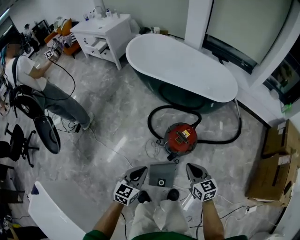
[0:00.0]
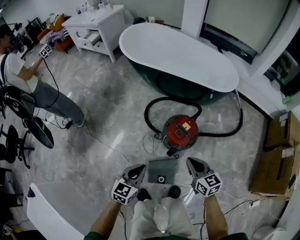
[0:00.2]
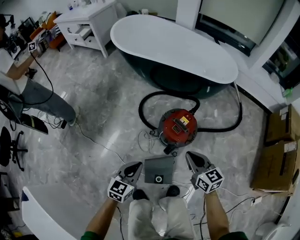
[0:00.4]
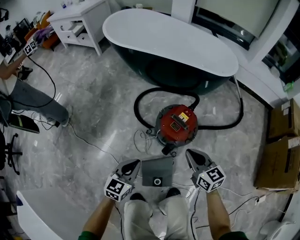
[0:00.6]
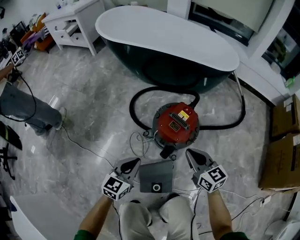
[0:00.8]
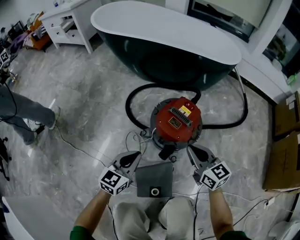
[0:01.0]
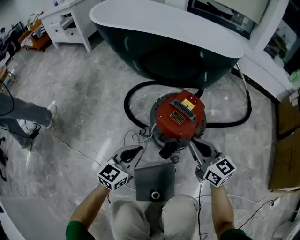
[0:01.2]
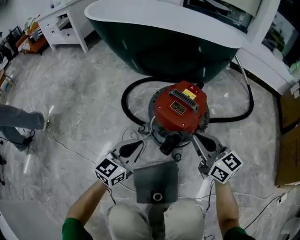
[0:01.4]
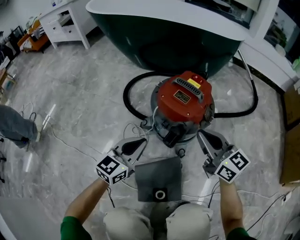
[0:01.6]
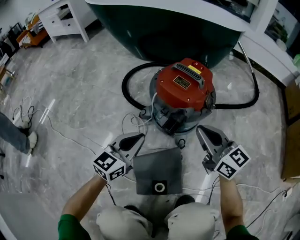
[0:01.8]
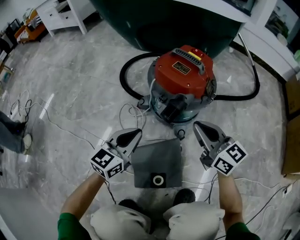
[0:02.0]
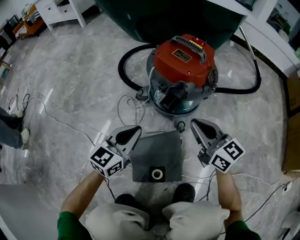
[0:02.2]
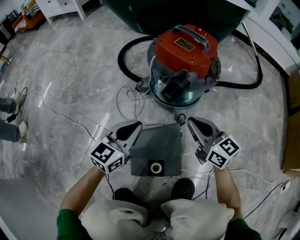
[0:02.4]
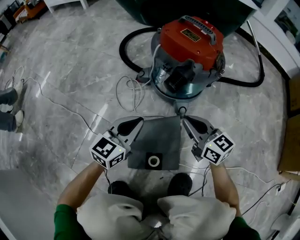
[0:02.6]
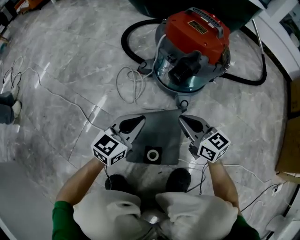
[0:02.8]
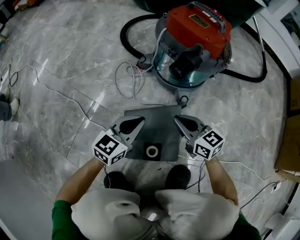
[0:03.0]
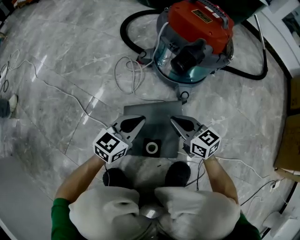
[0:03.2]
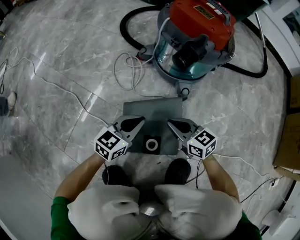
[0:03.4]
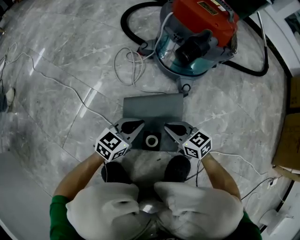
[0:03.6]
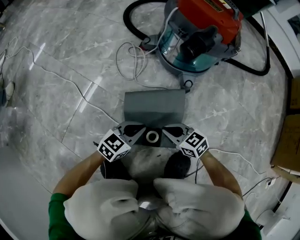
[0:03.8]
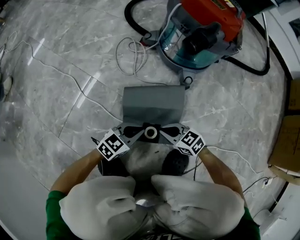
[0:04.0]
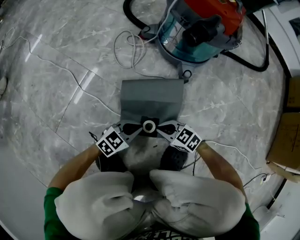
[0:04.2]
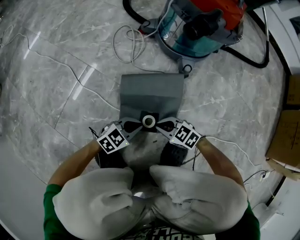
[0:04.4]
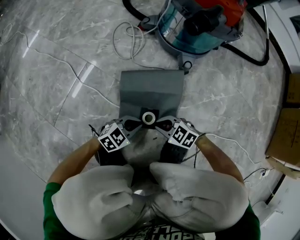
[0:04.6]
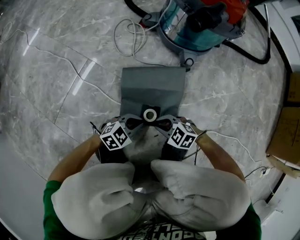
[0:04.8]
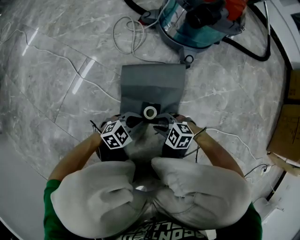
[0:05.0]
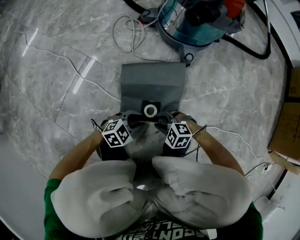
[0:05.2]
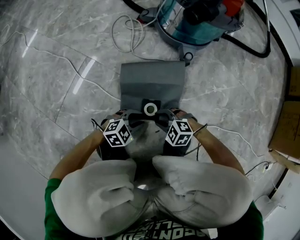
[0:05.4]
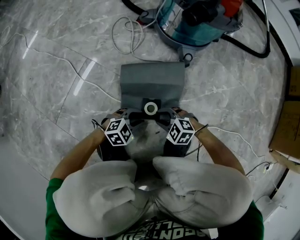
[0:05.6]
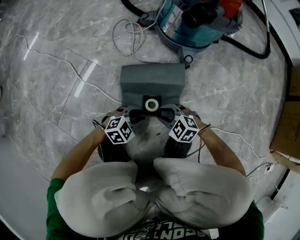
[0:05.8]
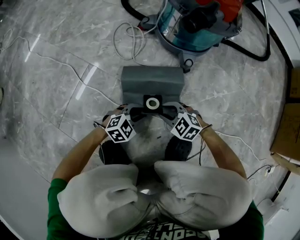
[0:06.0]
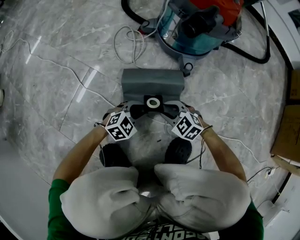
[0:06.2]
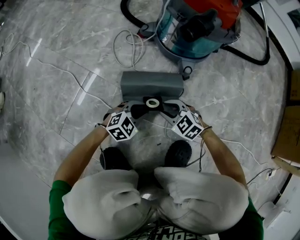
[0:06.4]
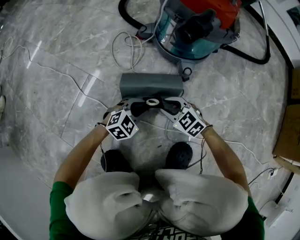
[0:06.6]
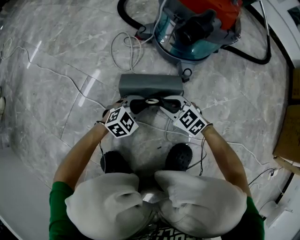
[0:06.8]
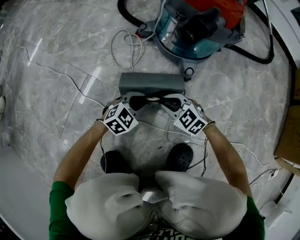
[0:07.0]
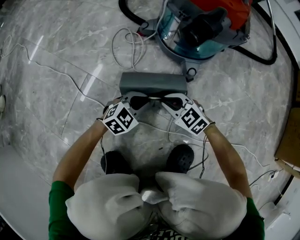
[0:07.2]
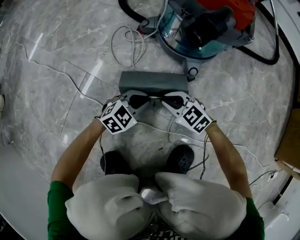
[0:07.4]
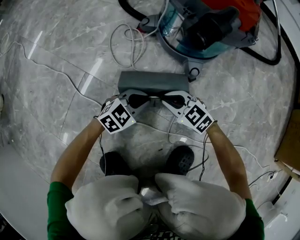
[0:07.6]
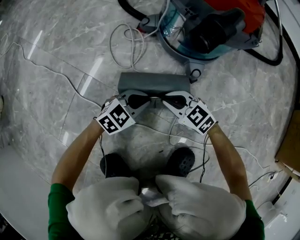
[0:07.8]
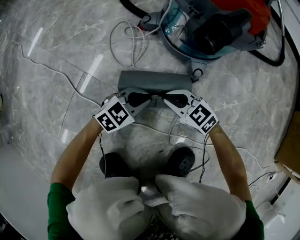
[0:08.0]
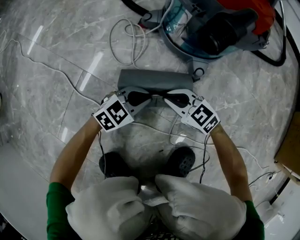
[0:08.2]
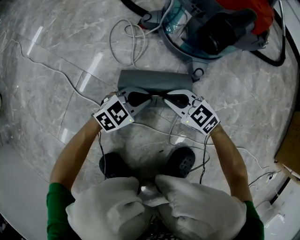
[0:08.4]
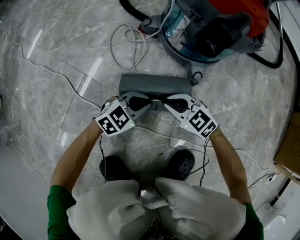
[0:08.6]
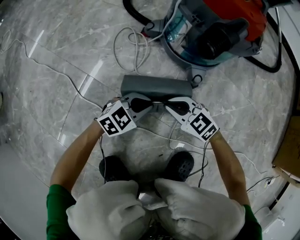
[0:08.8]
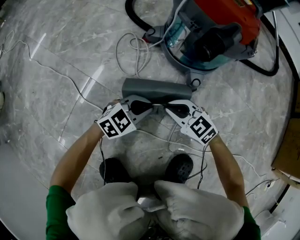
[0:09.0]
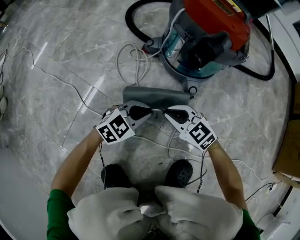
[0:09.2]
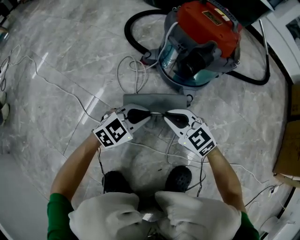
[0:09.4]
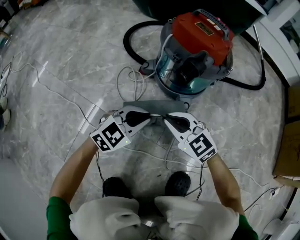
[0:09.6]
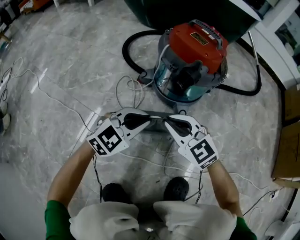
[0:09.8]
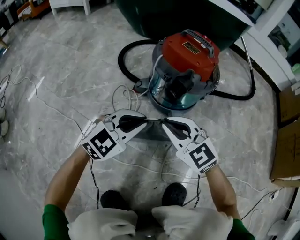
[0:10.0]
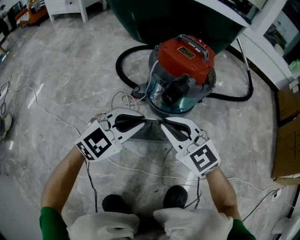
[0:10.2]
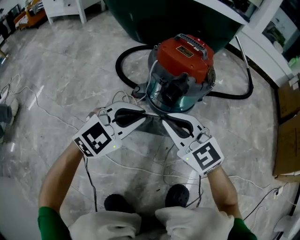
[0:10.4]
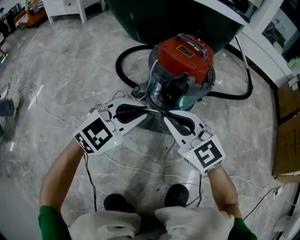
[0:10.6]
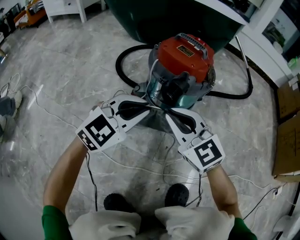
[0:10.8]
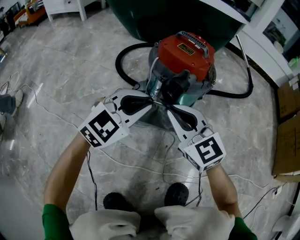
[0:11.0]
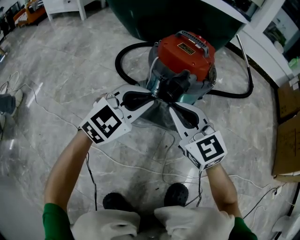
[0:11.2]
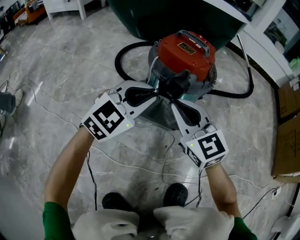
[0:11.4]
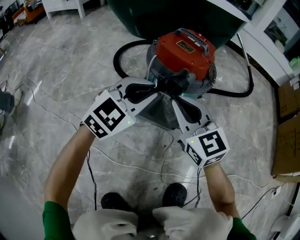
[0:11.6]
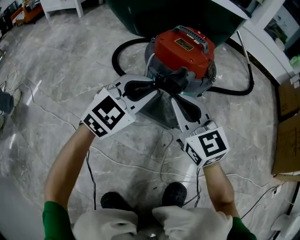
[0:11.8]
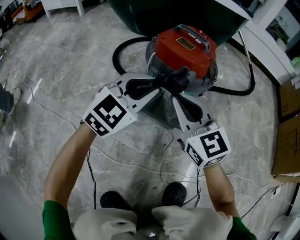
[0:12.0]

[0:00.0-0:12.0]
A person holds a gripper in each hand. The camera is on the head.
0:00.0 to 0:01.6: The two grippers go some 40 cm downward. The right gripper rotates approximately 20 degrees, while the left gripper rotates approximately 20 degrees.
0:01.6 to 0:03.0: The two grippers go approximately 25 cm downward and backward. The right gripper turns by roughly 20 degrees.
0:03.0 to 0:04.4: The right gripper shifts by approximately 25 cm, and changes its angle by some 40 degrees. Meanwhile the left gripper shifts some 15 cm downward, and turns by about 30 degrees.
0:04.4 to 0:06.0: The left gripper opens its fingers; the right gripper swivels approximately 20 degrees, and opens up.
0:06.0 to 0:07.6: The right gripper changes place by roughly 10 cm, and closes; the left gripper moves roughly 15 cm.
0:07.6 to 0:09.0: The grippers stay close to where they were, moving slightly.
0:09.0 to 0:10.4: The two grippers go roughly 25 cm upward. The right gripper rotates about 30 degrees. Meanwhile the left gripper turns by some 30 degrees.
0:10.4 to 0:12.0: The two grippers go approximately 5 cm forward.

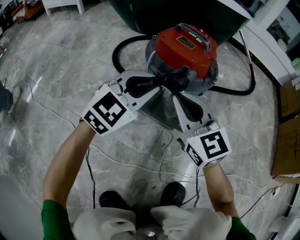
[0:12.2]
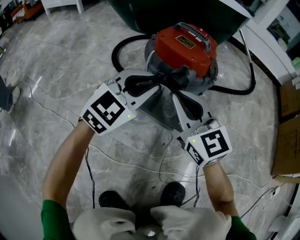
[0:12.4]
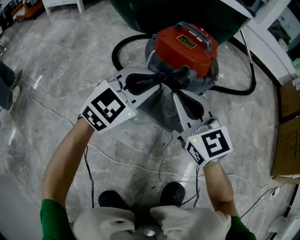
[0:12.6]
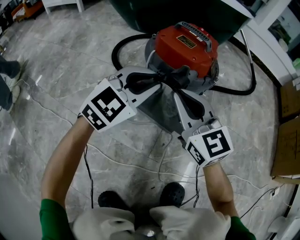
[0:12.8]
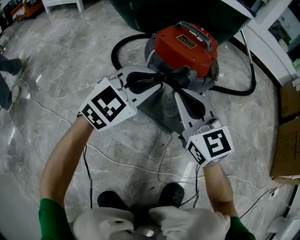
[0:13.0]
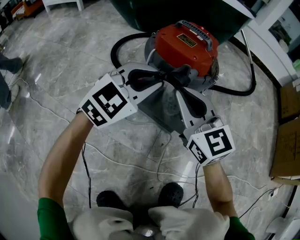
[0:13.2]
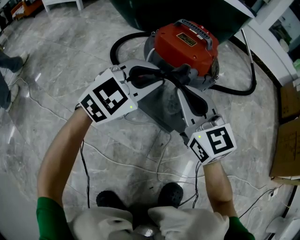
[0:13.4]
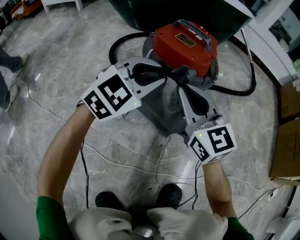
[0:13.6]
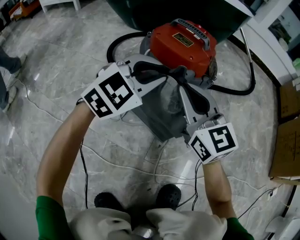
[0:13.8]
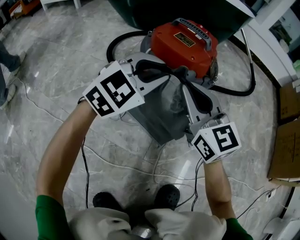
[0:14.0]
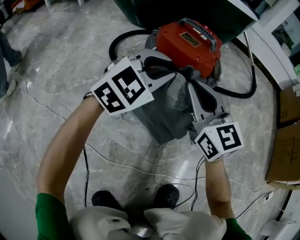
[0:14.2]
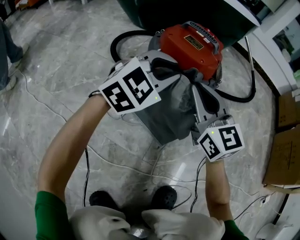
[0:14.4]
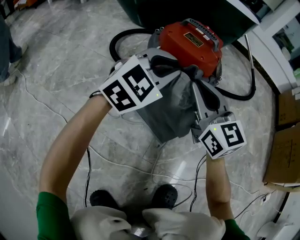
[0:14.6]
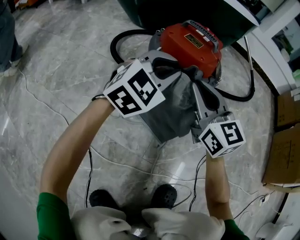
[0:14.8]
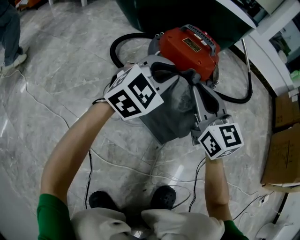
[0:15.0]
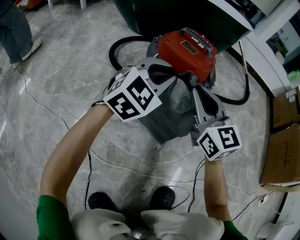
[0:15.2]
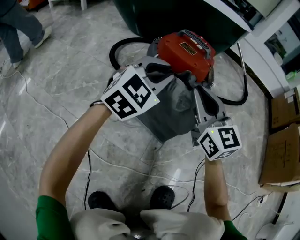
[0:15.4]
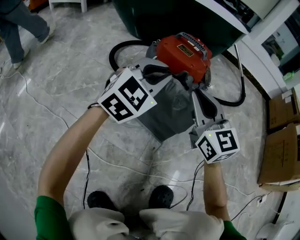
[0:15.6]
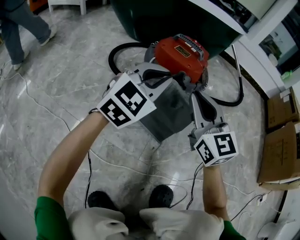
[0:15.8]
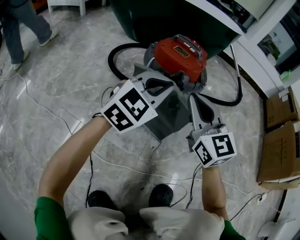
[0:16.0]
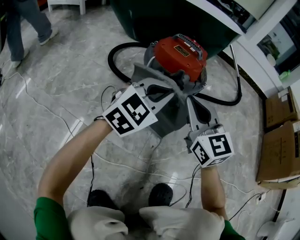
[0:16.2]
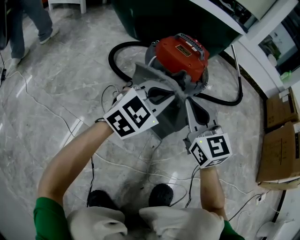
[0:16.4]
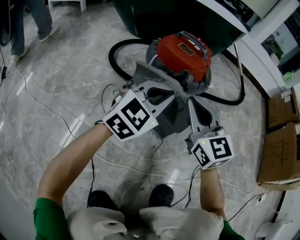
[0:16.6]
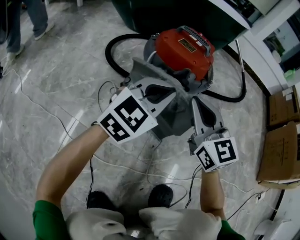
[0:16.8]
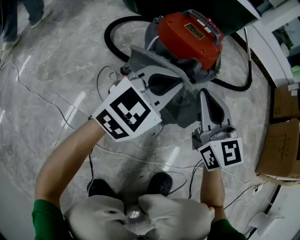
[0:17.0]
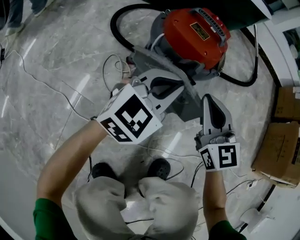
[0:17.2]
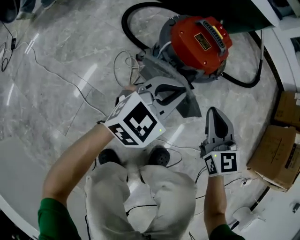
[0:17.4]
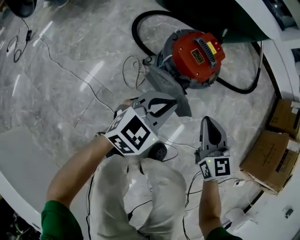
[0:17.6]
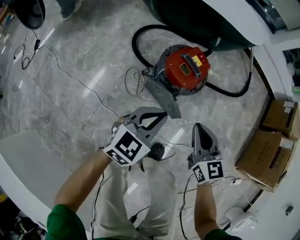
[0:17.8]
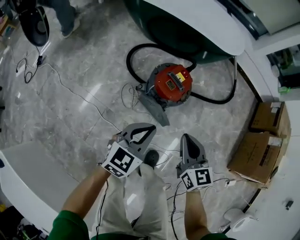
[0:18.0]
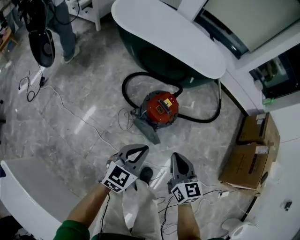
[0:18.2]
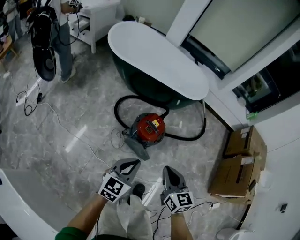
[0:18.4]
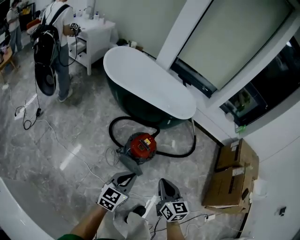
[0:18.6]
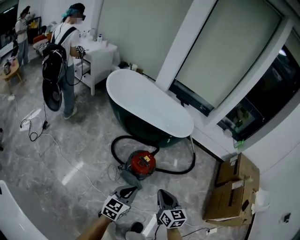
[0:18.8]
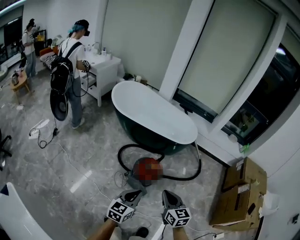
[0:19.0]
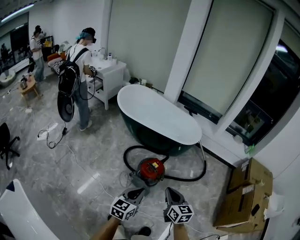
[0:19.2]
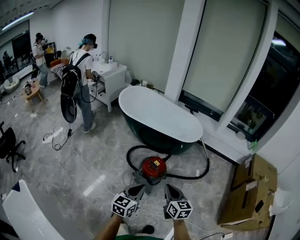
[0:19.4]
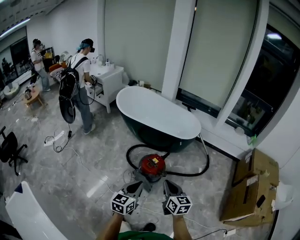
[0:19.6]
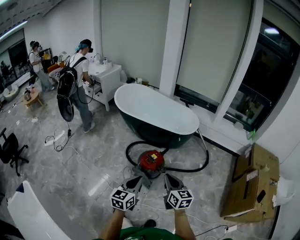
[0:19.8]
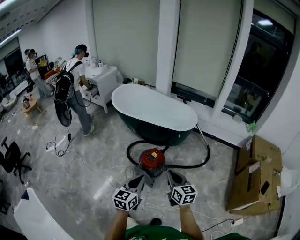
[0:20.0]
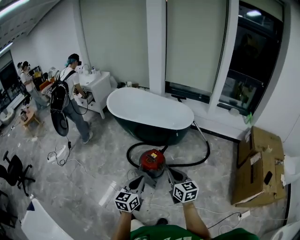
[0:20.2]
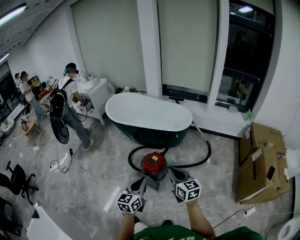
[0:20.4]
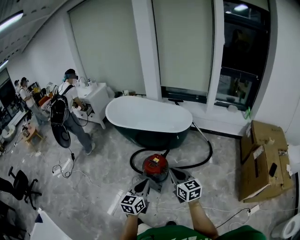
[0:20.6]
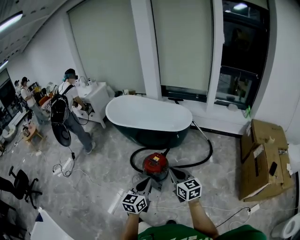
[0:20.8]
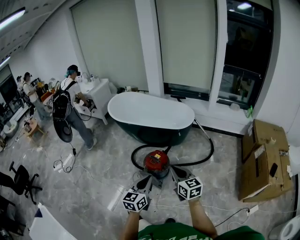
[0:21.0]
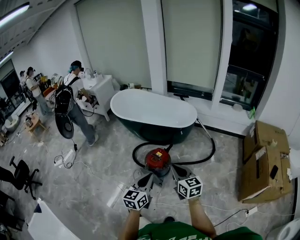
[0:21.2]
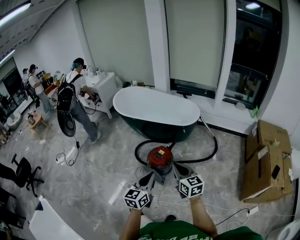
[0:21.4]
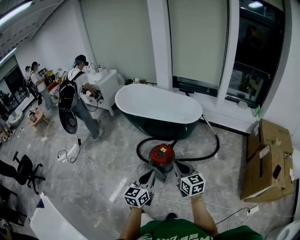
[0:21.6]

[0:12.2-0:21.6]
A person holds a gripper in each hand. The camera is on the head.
0:12.2 to 0:13.8: The left gripper moves approximately 5 cm, while the right gripper ends up about 5 cm from where it was.
0:13.8 to 0:15.4: The grippers move only a little.
0:15.4 to 0:17.0: The left gripper changes place by some 5 cm.
0:17.0 to 0:18.4: Both grippers move upward, roughly 50 cm. The left gripper changes its angle by roughly 30 degrees, while the right gripper rotates roughly 20 degrees.
0:18.4 to 0:20.0: The right gripper is displaced to the right, upward and backward by about 25 cm. Meanwhile the left gripper is displaced upward, to the right and backward by some 25 cm.
0:20.0 to 0:21.6: There are only small adjustments of the grippers.

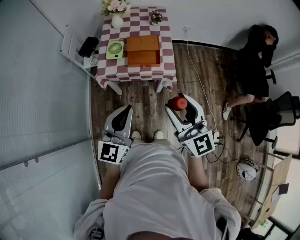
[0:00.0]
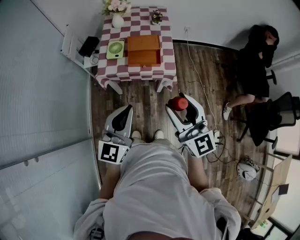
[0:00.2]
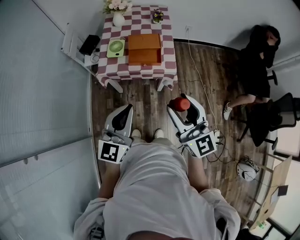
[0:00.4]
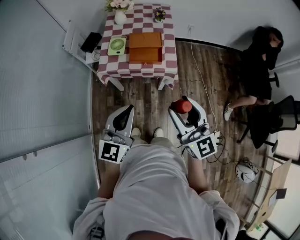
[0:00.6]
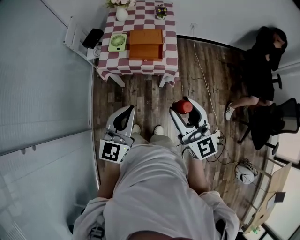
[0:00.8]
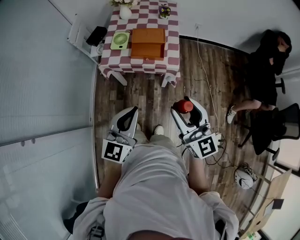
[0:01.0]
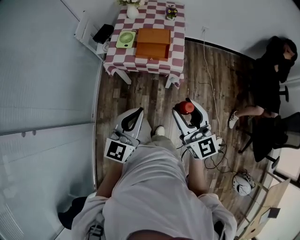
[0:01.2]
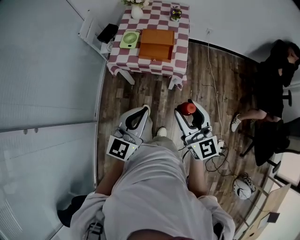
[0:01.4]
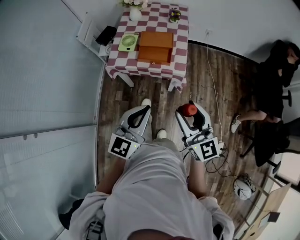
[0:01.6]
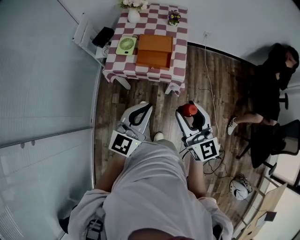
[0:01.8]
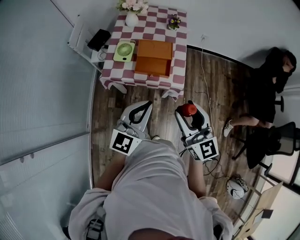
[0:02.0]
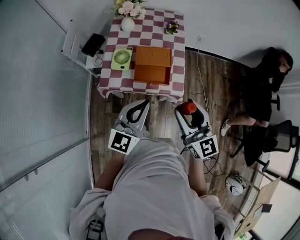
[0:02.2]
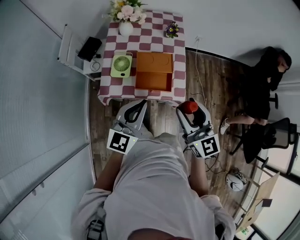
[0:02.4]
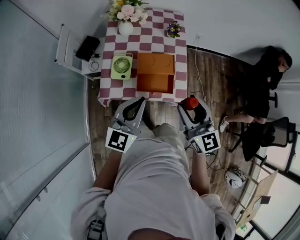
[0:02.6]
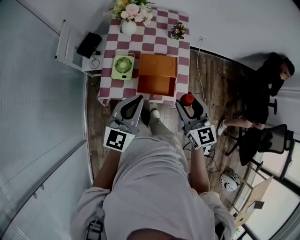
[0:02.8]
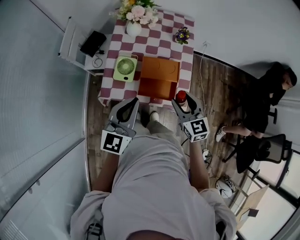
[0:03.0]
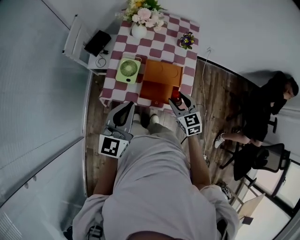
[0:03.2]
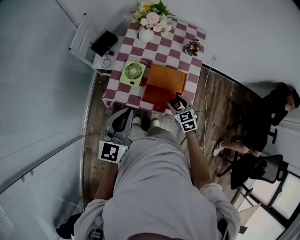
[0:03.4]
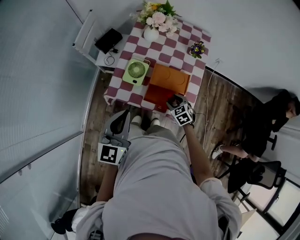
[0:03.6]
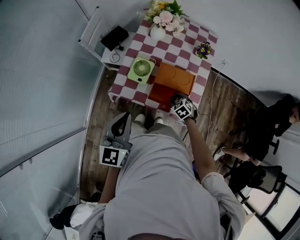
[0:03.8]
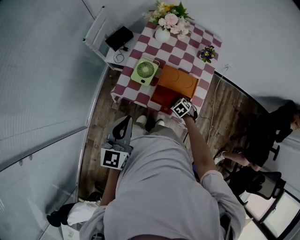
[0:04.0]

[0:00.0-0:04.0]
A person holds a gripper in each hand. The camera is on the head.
0:00.0 to 0:01.4: The left gripper moves to the right, about 10 cm, while the right gripper moves to the right and downward, about 10 cm.
0:01.4 to 0:02.6: Both grippers move forward, roughly 30 cm.
0:02.6 to 0:04.0: The left gripper changes place by about 10 cm, and changes its angle by some 30 degrees; the right gripper travels downward by about 40 cm, and angles its fingers downward, by approximately 60 degrees.
